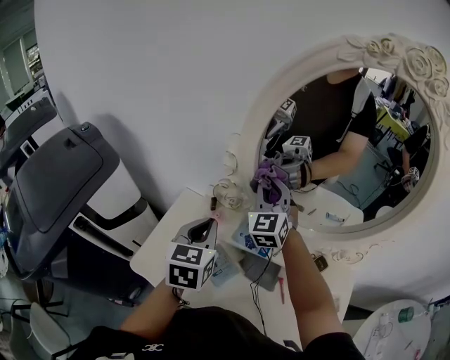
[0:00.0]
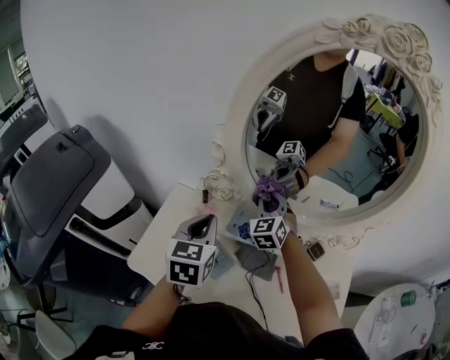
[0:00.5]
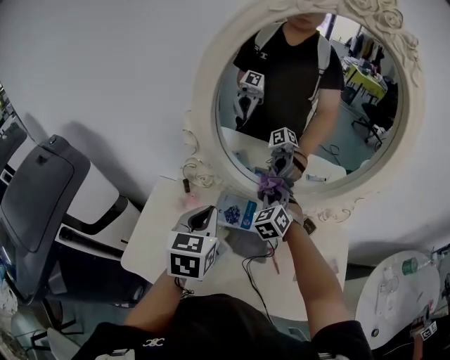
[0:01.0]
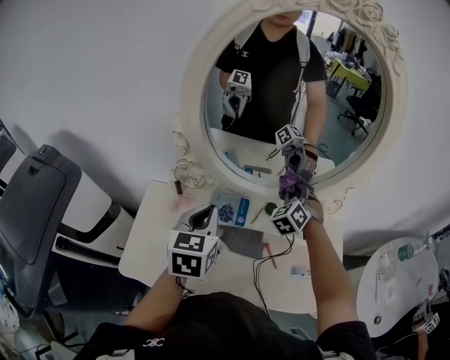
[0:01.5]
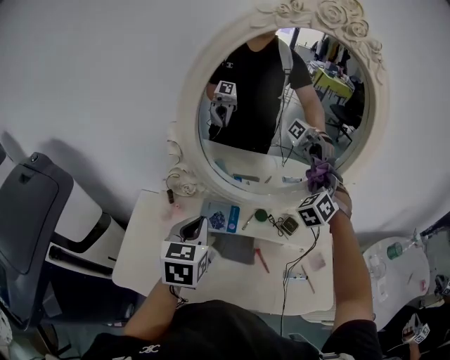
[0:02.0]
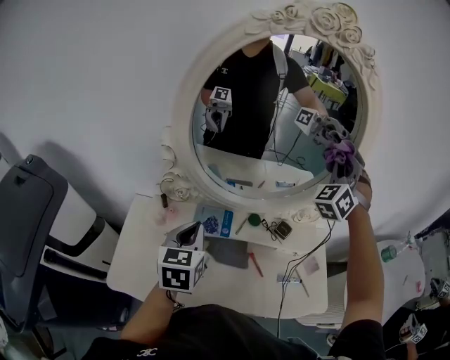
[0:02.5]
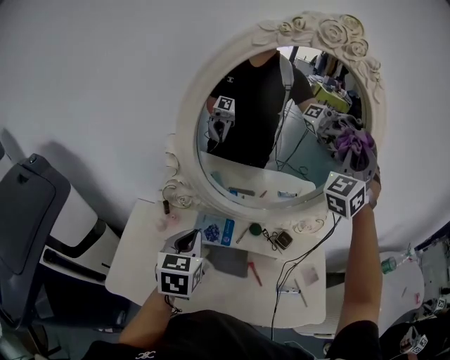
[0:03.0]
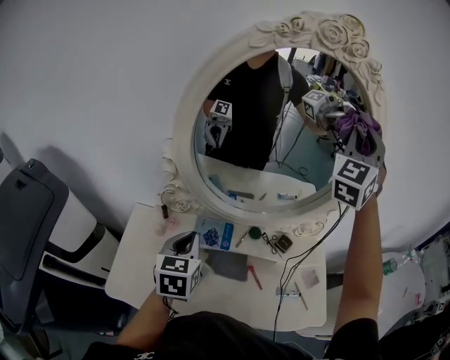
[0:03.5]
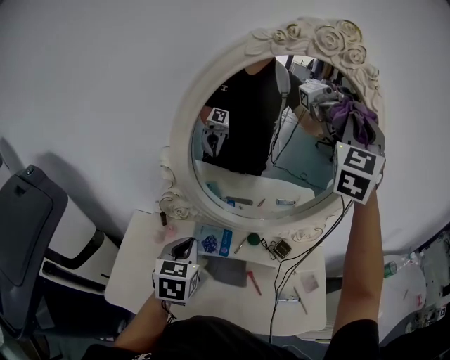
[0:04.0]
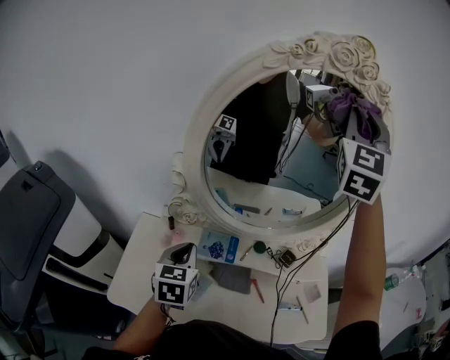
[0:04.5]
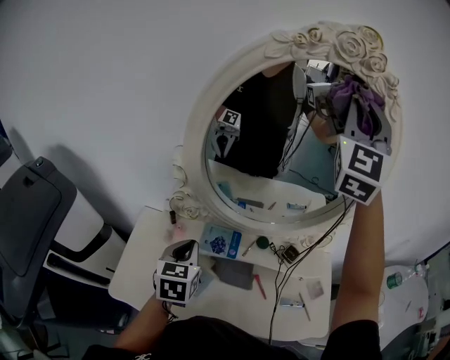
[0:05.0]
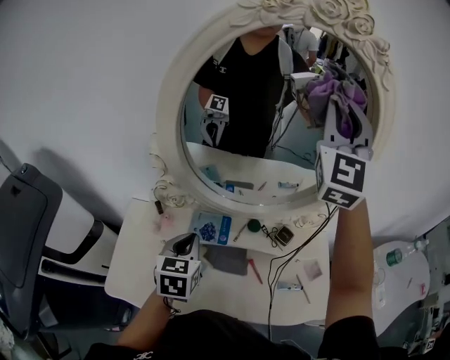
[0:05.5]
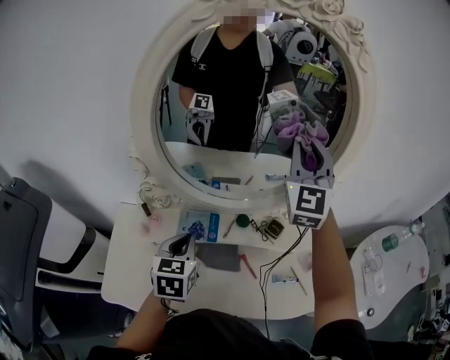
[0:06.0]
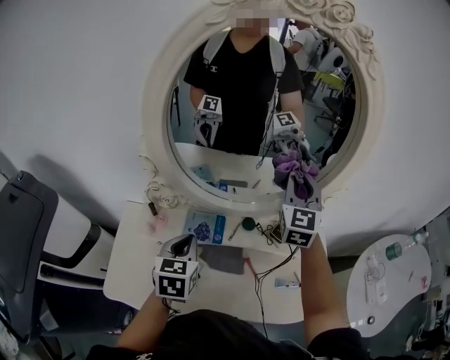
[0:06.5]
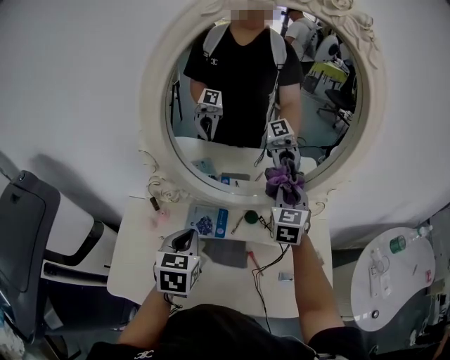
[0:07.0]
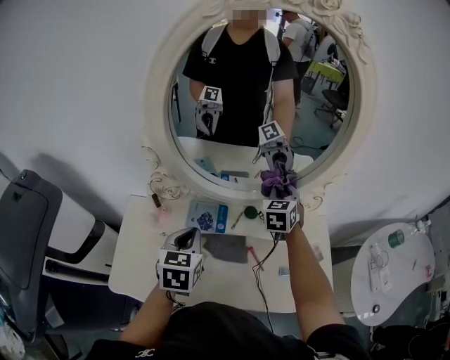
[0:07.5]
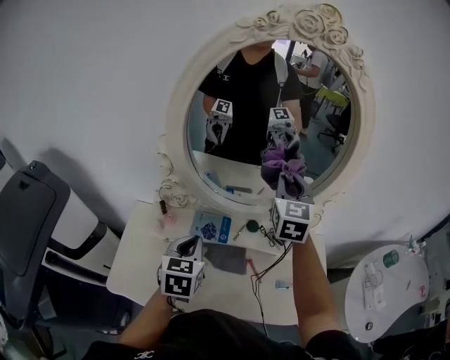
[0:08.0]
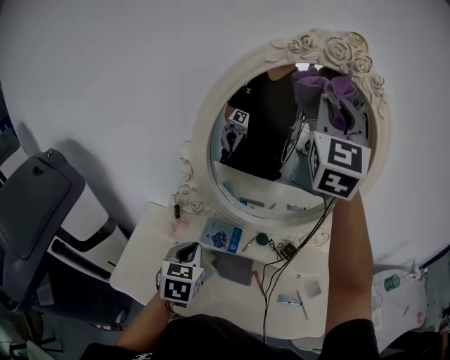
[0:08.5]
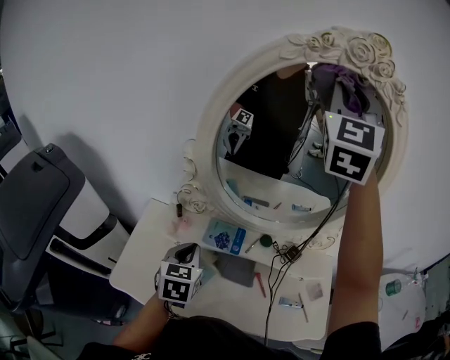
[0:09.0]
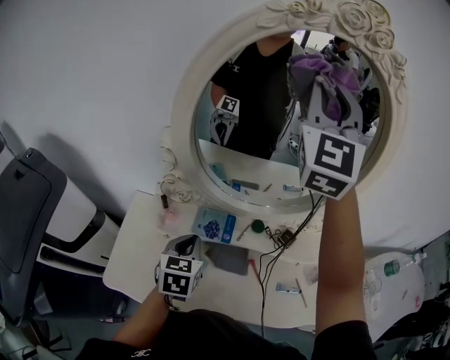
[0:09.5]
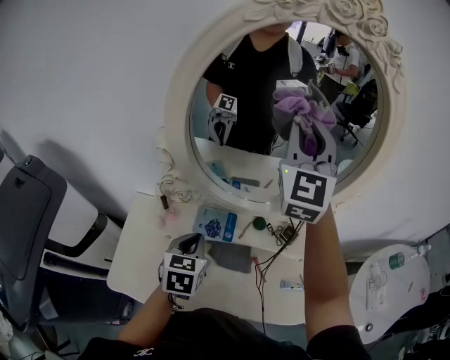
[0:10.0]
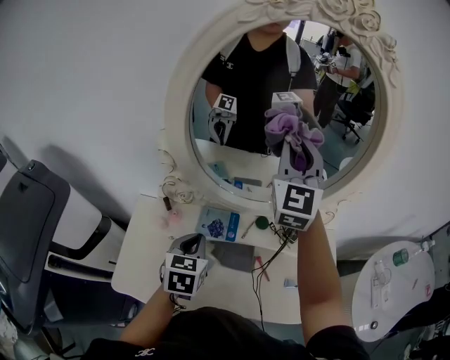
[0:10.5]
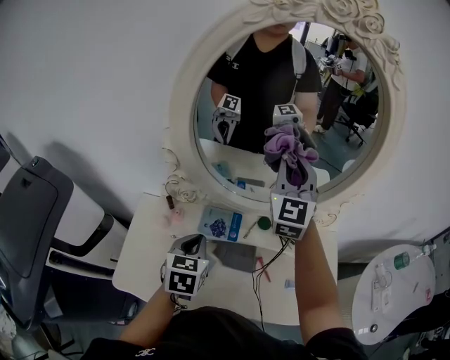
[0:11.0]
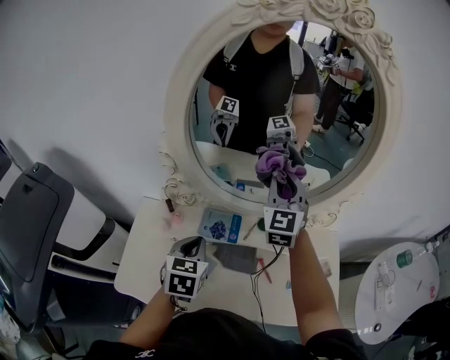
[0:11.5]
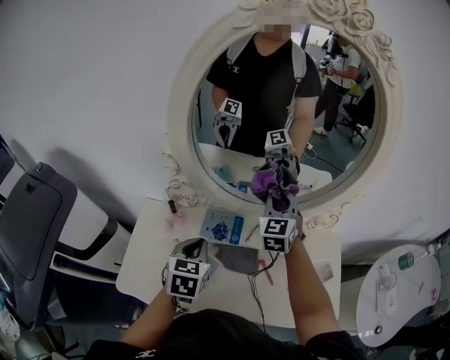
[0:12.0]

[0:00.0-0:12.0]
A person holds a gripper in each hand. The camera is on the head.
0:00.0 to 0:02.0: The left gripper changes place by some 10 cm; the right gripper moves roughly 15 cm downward and comes back, and turns by some 60 degrees.
0:02.0 to 0:04.0: The right gripper shifts about 35 cm upward, and tips its fingers upward by some 40 degrees.
0:04.0 to 0:06.0: The left gripper changes place by approximately 5 cm; the right gripper heads downward, covering approximately 15 cm.
0:06.0 to 0:08.0: The right gripper reaches some 25 cm downward, then returns, and changes its angle by approximately 20 degrees.
0:08.0 to 0:10.0: The right gripper heads upward and to the left, covering approximately 15 cm, and swivels some 20 degrees.
0:10.0 to 0:12.0: The right gripper travels downward by some 25 cm, and rotates roughly 30 degrees.

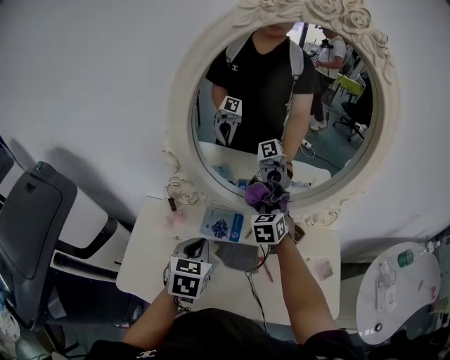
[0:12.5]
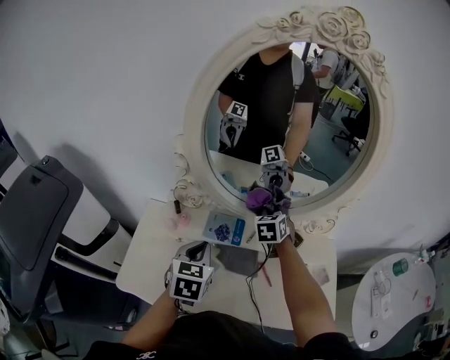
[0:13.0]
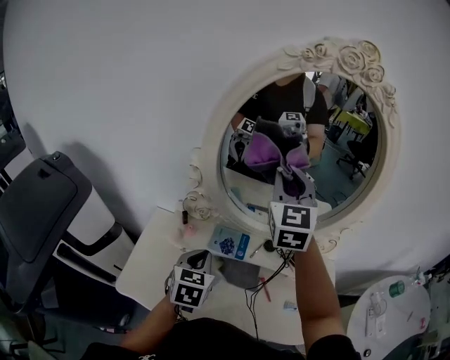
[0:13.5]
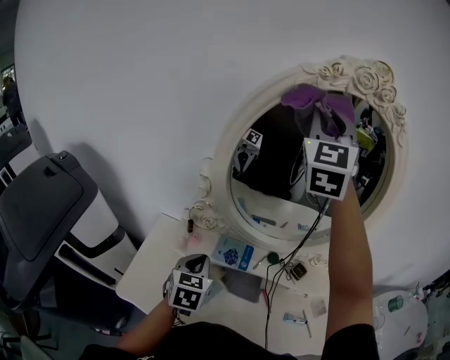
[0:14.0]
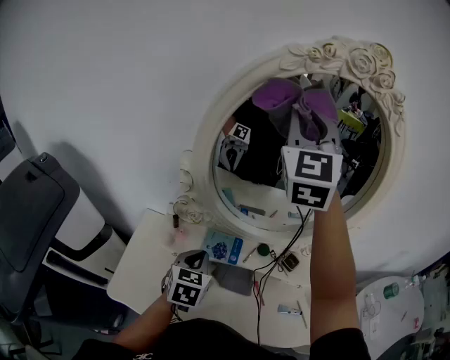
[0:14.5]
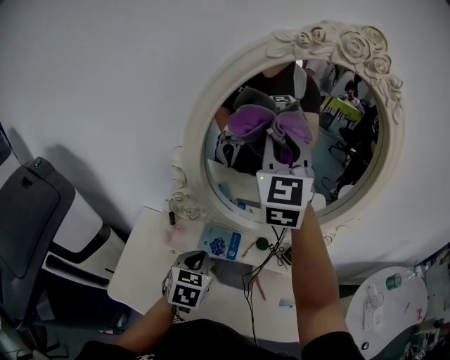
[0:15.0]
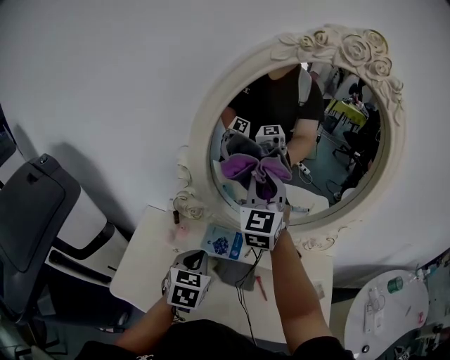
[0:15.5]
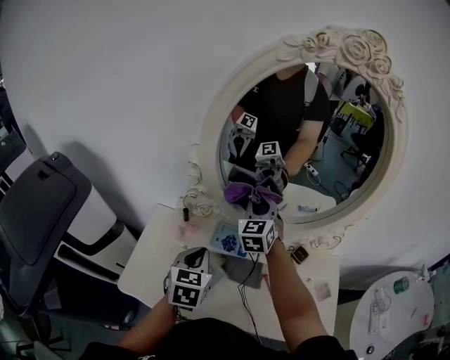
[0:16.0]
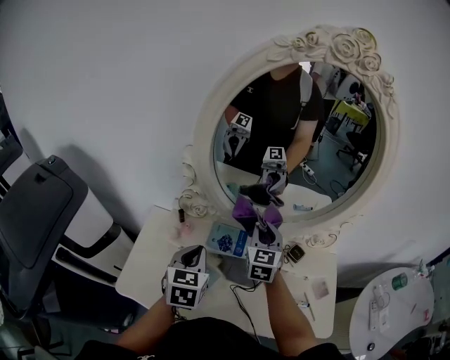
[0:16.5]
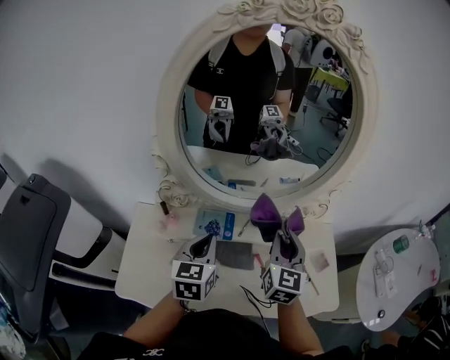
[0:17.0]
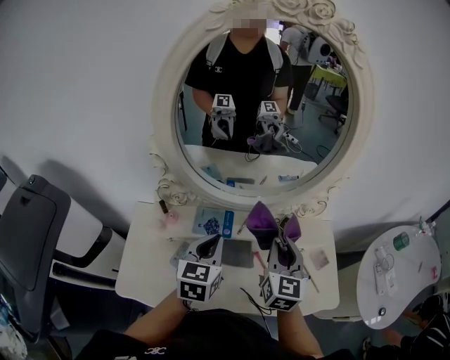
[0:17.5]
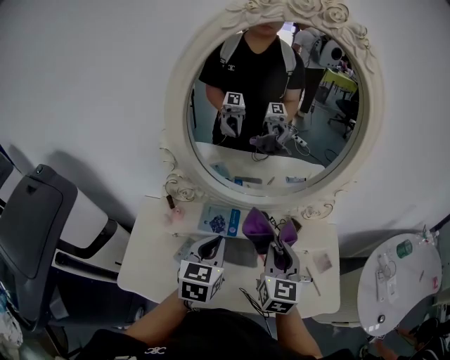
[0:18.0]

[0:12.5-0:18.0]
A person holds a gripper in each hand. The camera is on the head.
0:12.5 to 0:14.5: The right gripper heads upward, covering some 50 cm, and tips its fingers upward by about 50 degrees.
0:14.5 to 0:16.0: The right gripper is displaced downward by some 35 cm, and turns by roughly 30 degrees.
0:16.0 to 0:18.0: The right gripper travels backward and to the right by about 25 cm, and rotates some 30 degrees; the left gripper moves to the right, about 10 cm.

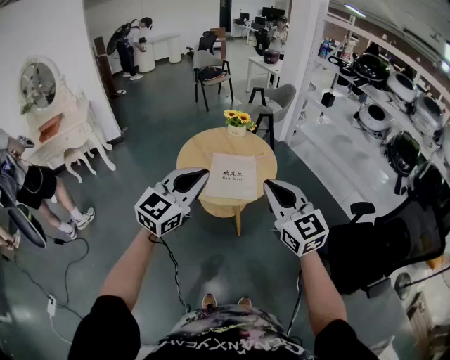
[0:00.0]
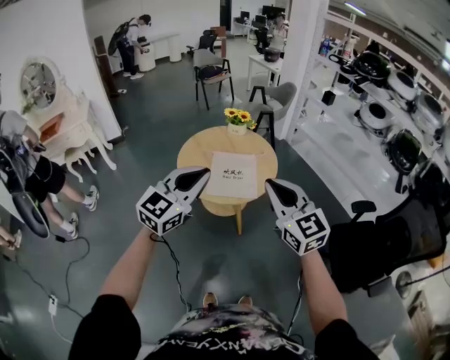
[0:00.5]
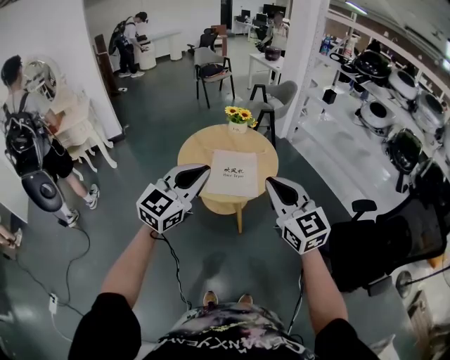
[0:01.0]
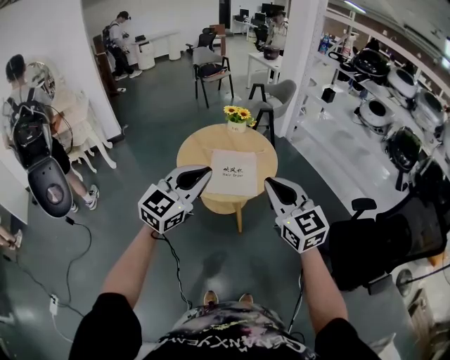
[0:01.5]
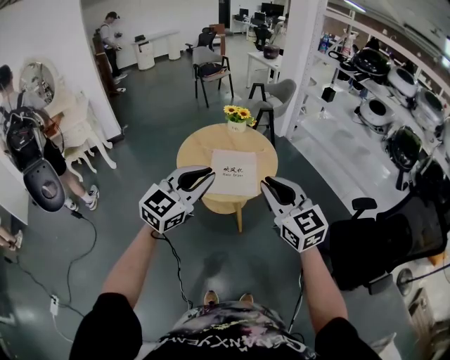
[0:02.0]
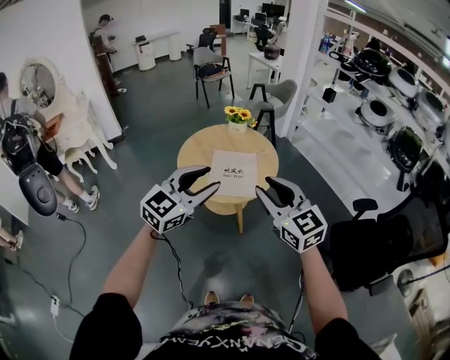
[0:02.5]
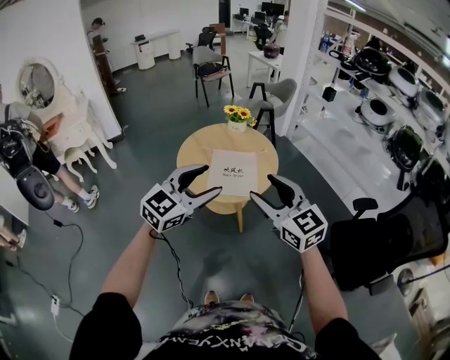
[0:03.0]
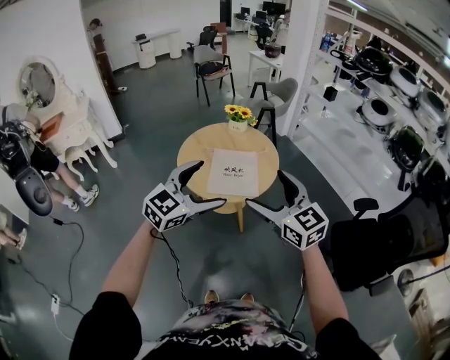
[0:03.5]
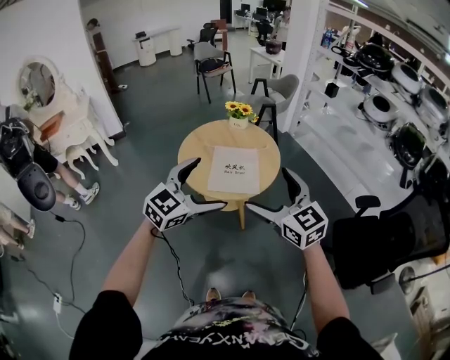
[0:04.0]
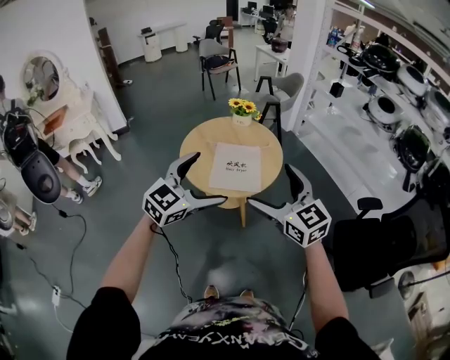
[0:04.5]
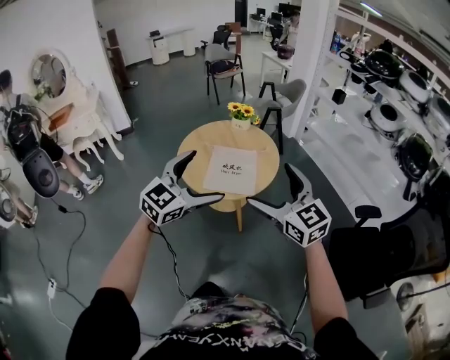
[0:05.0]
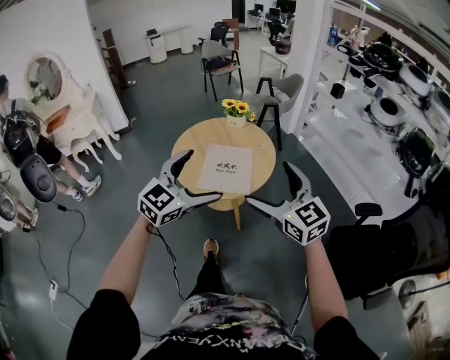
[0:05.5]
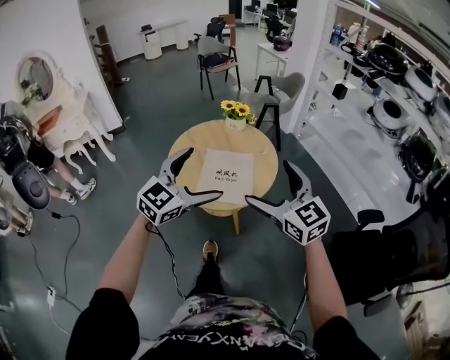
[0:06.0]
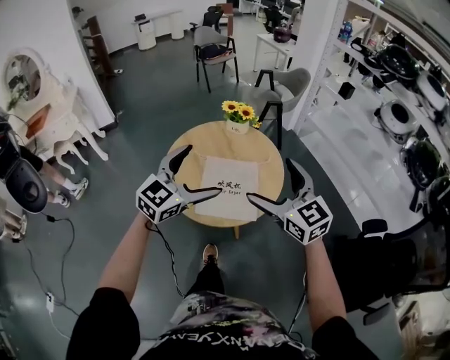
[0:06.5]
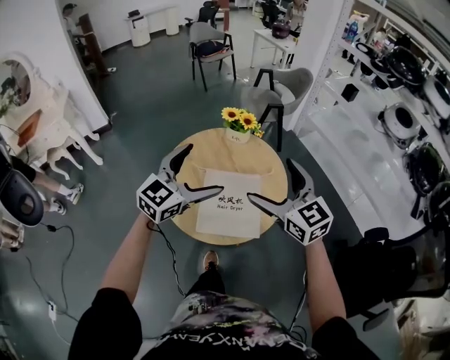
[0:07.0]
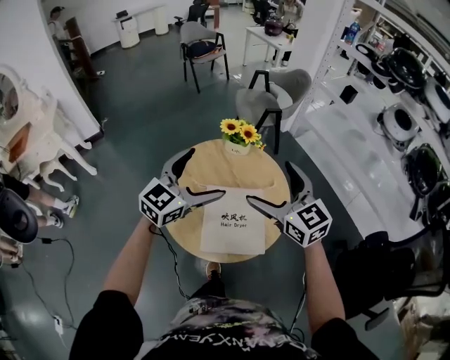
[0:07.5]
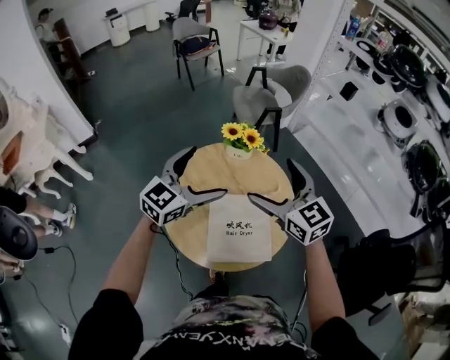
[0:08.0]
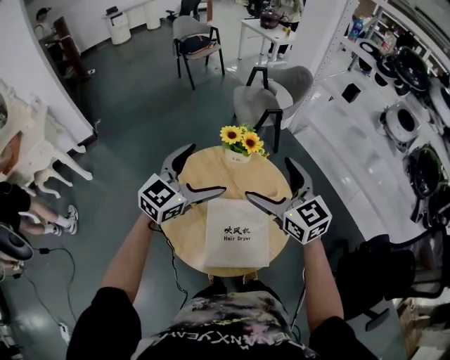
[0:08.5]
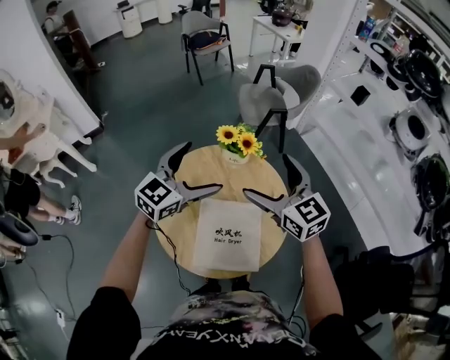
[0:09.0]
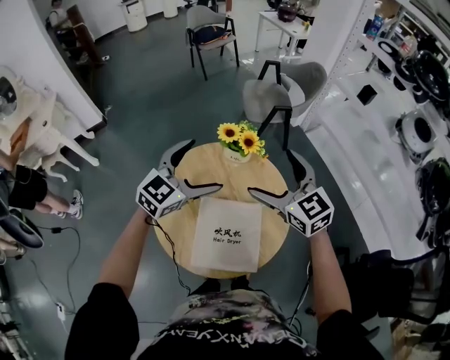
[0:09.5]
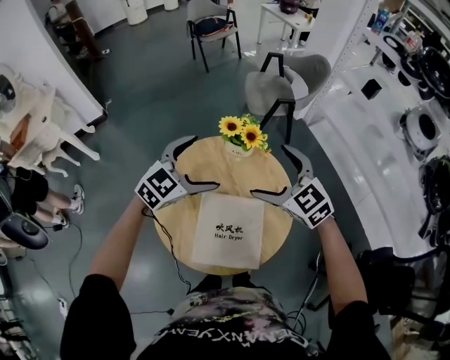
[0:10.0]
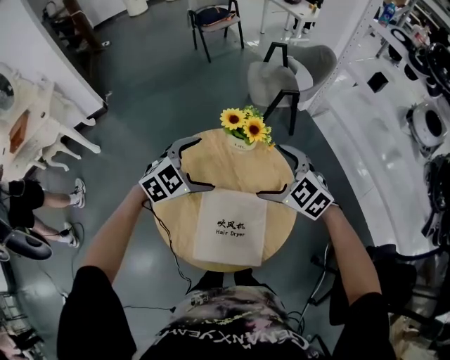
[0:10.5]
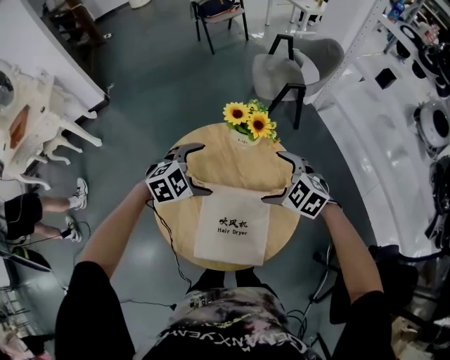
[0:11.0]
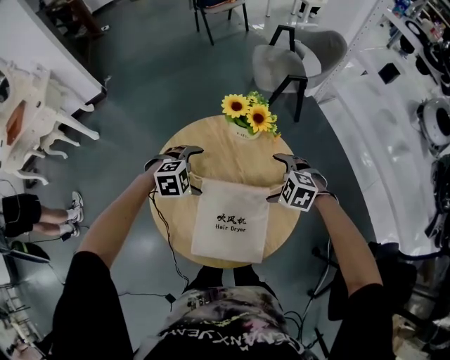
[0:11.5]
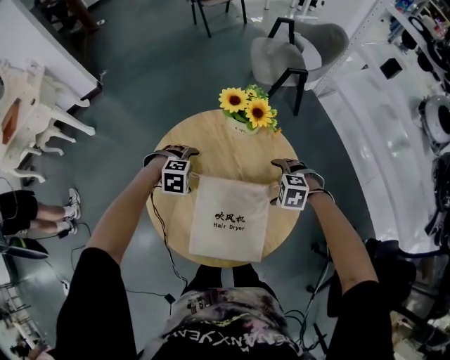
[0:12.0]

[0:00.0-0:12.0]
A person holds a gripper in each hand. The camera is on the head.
0:00.0 to 0:02.0: There are only small adjustments of the grippers.
0:02.0 to 0:04.0: The right gripper opens up, while the left gripper opens its fingers.
0:04.0 to 0:06.0: The right gripper is displaced forward and to the right by some 10 cm. Meanwhile the left gripper travels forward by approximately 10 cm.
0:06.0 to 0:08.0: The two grippers go about 35 cm forward.
0:08.0 to 0:10.0: The grippers both shift forward and downward by approximately 10 cm. The right gripper swivels roughly 30 degrees. Meanwhile the left gripper rotates roughly 20 degrees.
0:10.0 to 0:12.0: Both grippers travel together downward, some 30 cm. The left gripper tips its fingers downward by roughly 50 degrees. Meanwhile the right gripper tips its fingers downward by some 50 degrees.
